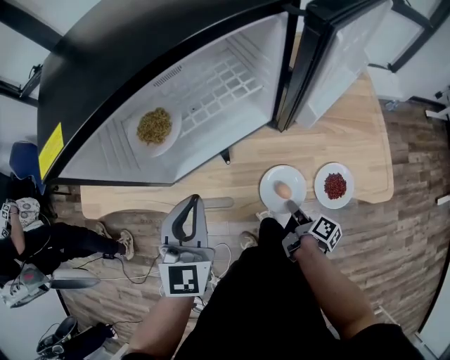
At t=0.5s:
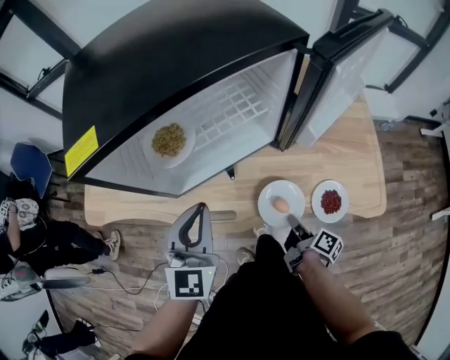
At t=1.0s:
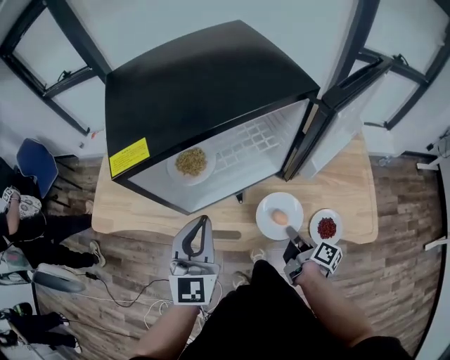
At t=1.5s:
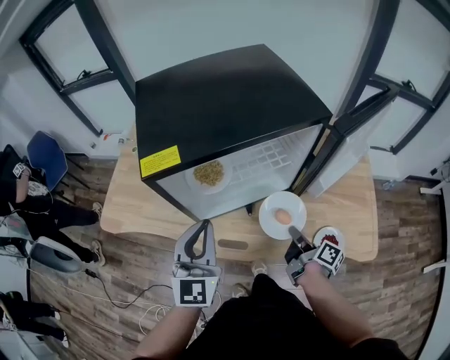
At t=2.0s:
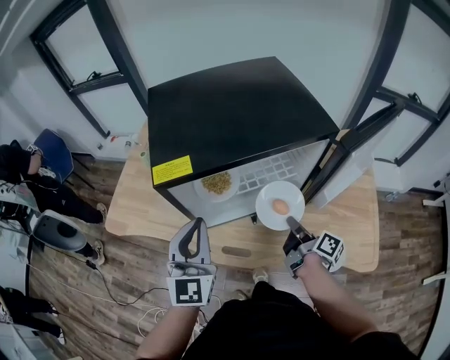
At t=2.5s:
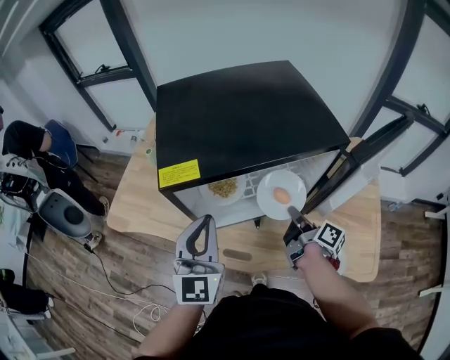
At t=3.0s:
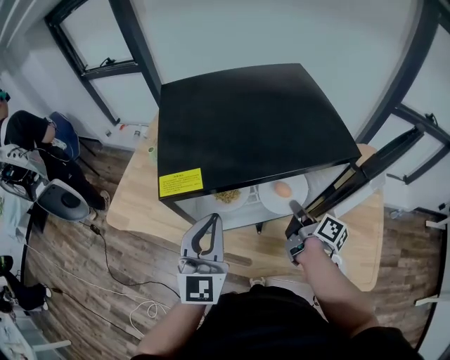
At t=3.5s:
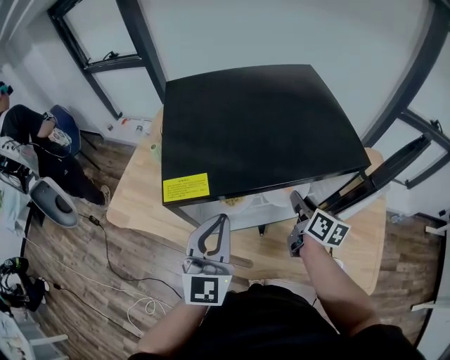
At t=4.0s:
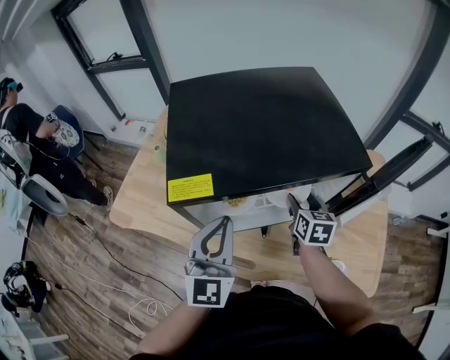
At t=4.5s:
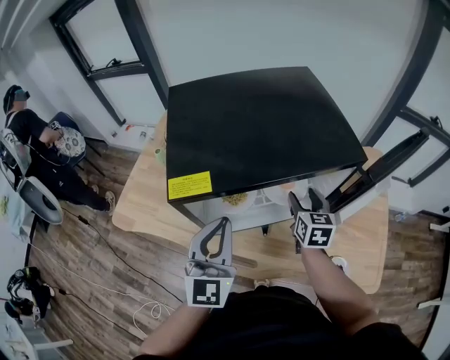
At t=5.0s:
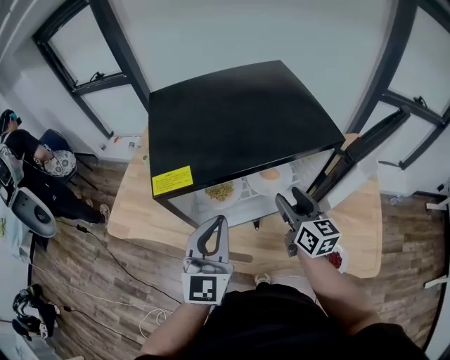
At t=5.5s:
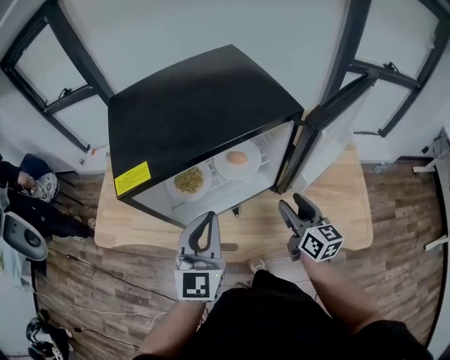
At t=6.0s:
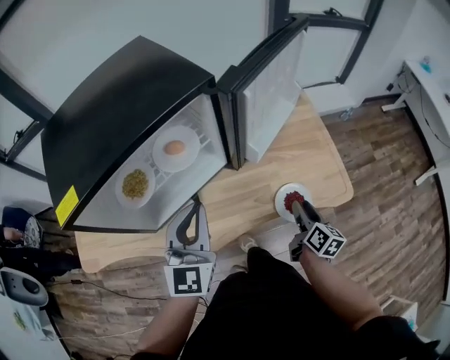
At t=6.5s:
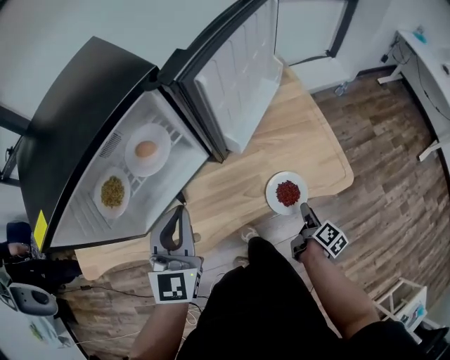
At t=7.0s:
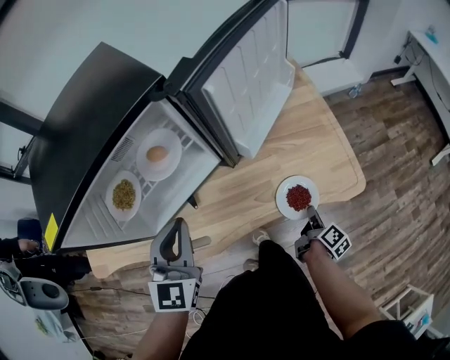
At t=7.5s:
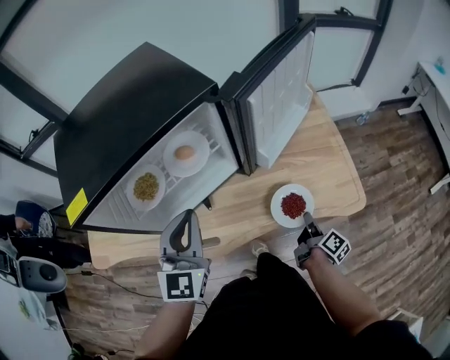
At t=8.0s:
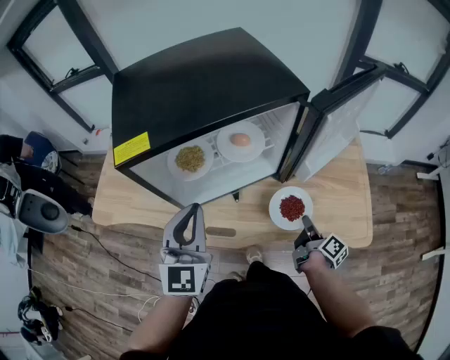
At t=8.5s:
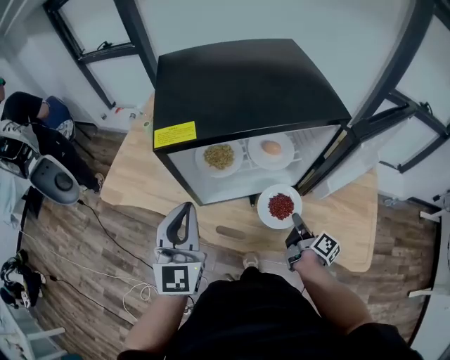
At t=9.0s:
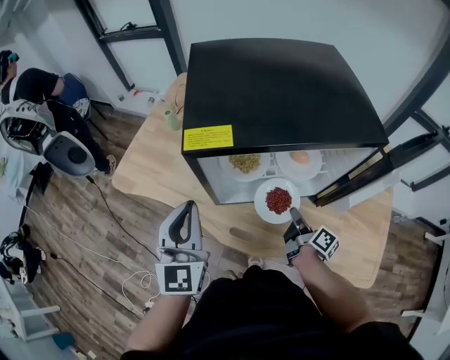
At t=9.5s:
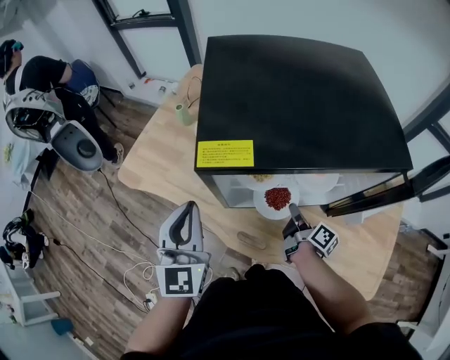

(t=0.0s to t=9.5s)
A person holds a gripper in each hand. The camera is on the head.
t=0.0s - t=2.0s: The right gripper shifts roughly 25 cm upward and forward, and swivels about 30 degrees. Meanwhile the left gripper moves upward and to the left, some 15 cm, and changes its angle by about 20 degrees.
t=2.0s - t=4.0s: The right gripper heads forward, covering approximately 15 cm, rotates around the line of its fingers by some 60 degrees, counterclockwise from behind, and opens, while the left gripper ends up some 5 cm from where it was.
t=4.0s - t=5.5s: The left gripper is displaced to the right by approximately 5 cm; the right gripper goes approximately 15 cm backward and to the right, and swivels roughly 20 degrees.
t=5.5s - t=7.5s: The right gripper ends up about 30 cm from where it was, rolls clockwise, seen from behind, by about 50 degrees, and closes.
t=7.5s - t=9.5s: The left gripper changes place by roughly 25 cm, and rotates some 40 degrees. The right gripper moves about 35 cm, and swivels some 40 degrees.

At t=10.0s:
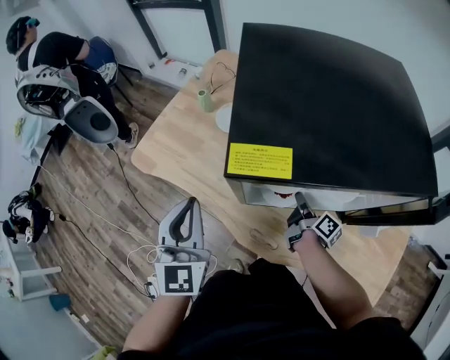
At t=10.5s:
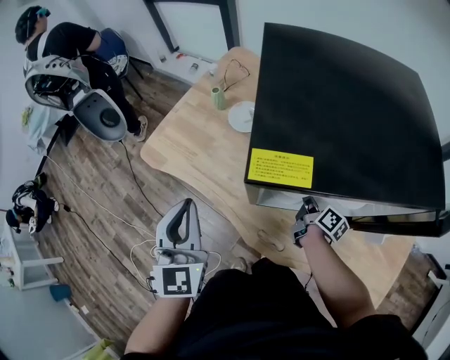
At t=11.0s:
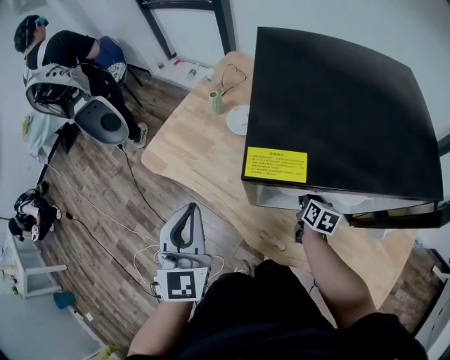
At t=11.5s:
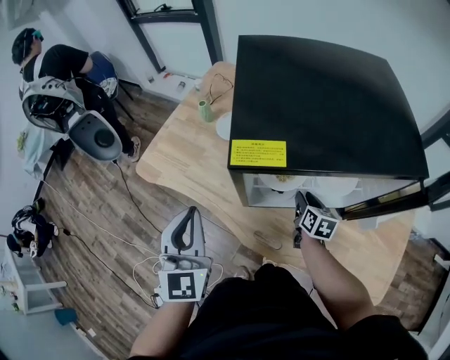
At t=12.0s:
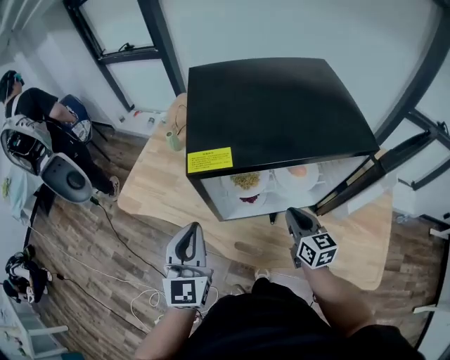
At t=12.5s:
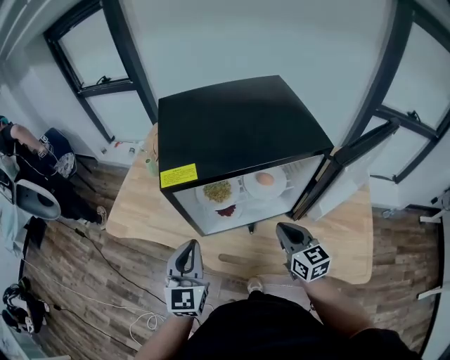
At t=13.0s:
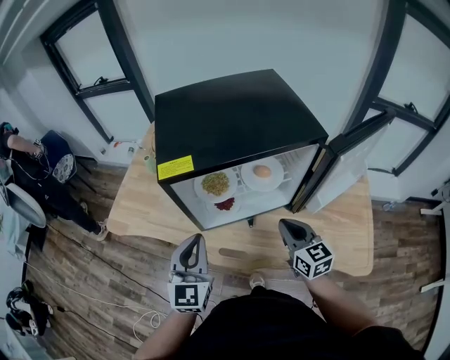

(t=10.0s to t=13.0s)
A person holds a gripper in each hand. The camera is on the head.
t=10.0s - t=11.5s: The right gripper twists some 40 degrees counterclockwise, seen from behind, and opens.
t=11.5s - t=13.0s: The right gripper is displaced upward and backward by approximately 25 cm, turns by about 30 degrees, and closes up, while the left gripper travels to the right by approximately 15 cm, and turns by roughly 20 degrees.

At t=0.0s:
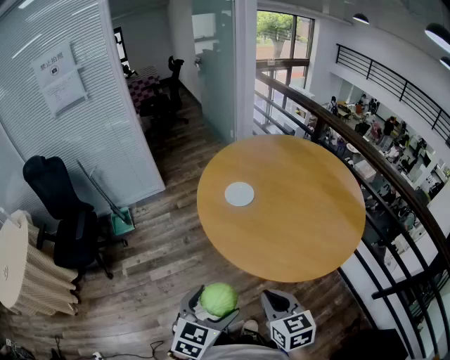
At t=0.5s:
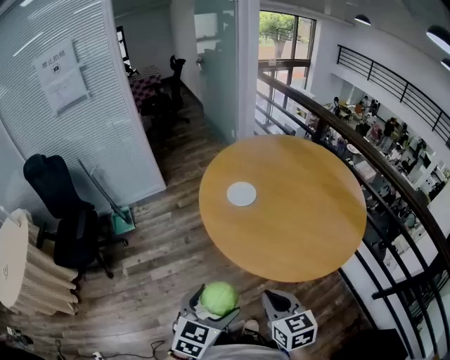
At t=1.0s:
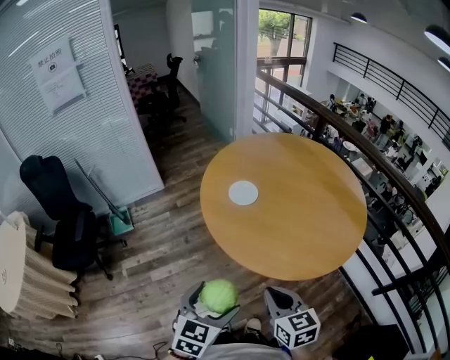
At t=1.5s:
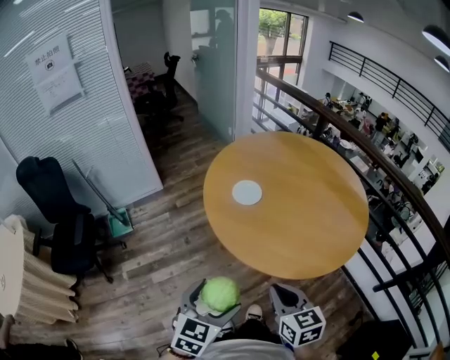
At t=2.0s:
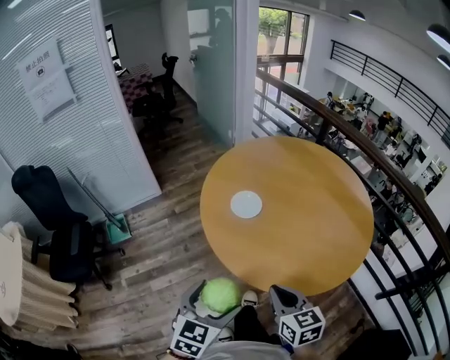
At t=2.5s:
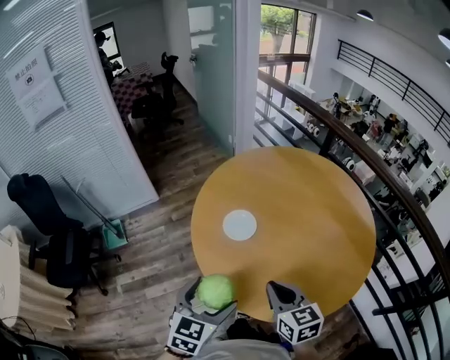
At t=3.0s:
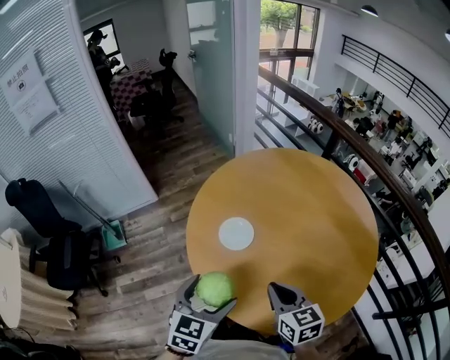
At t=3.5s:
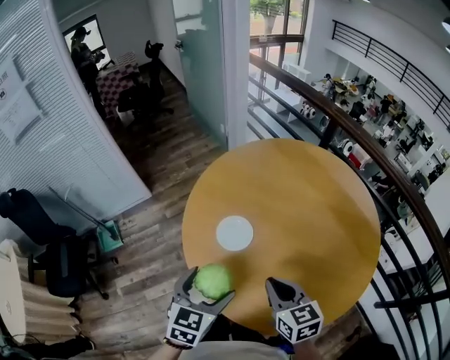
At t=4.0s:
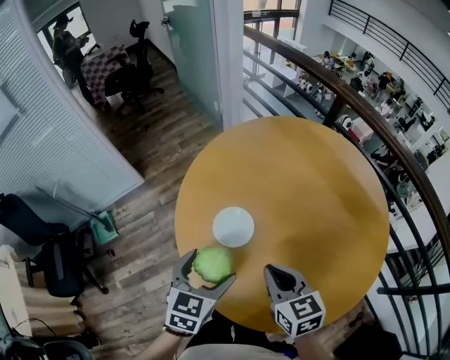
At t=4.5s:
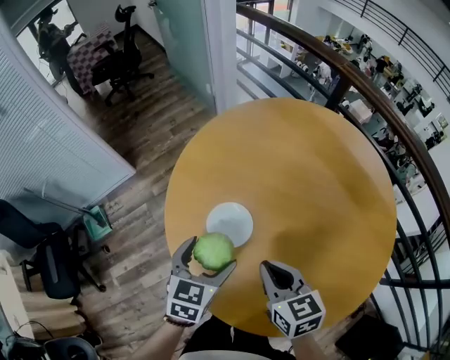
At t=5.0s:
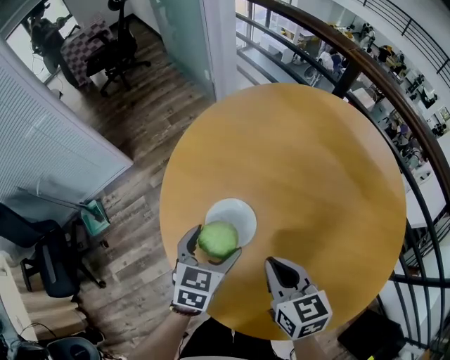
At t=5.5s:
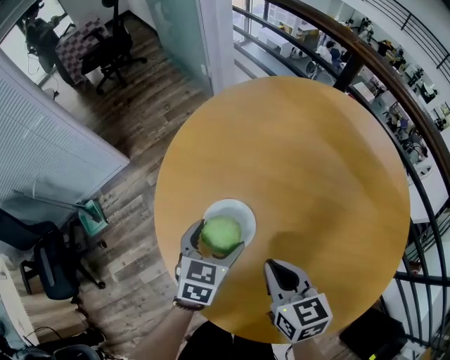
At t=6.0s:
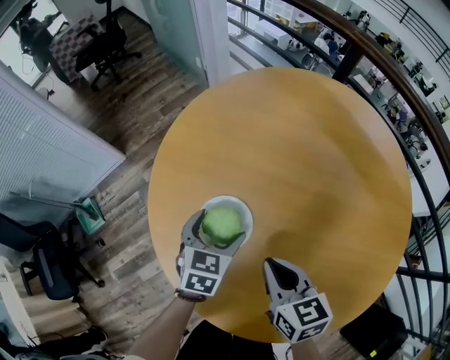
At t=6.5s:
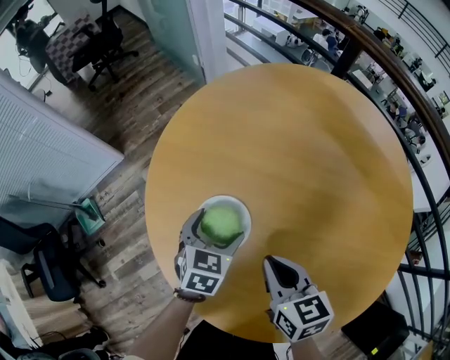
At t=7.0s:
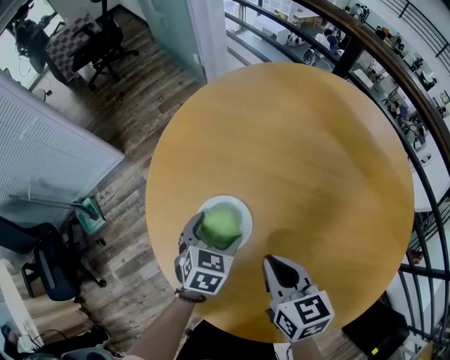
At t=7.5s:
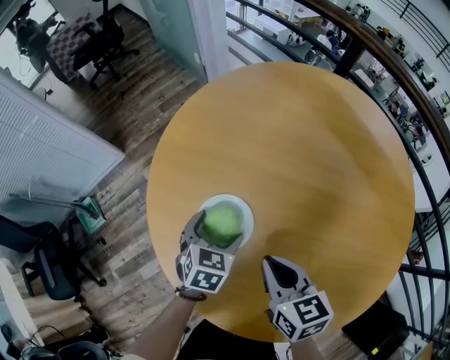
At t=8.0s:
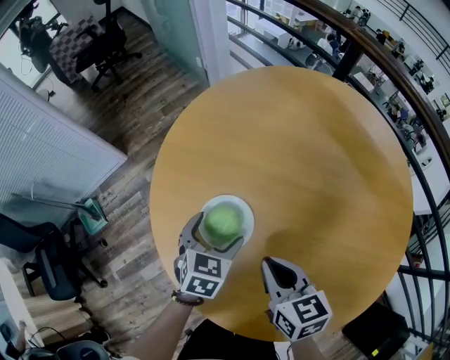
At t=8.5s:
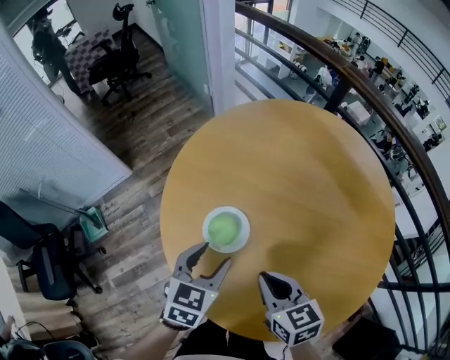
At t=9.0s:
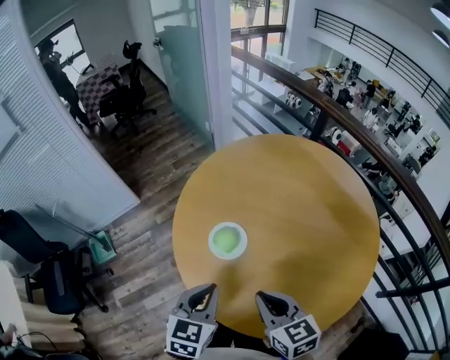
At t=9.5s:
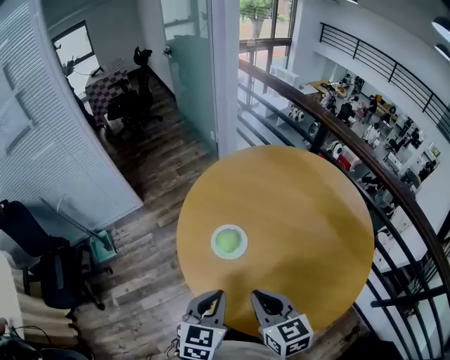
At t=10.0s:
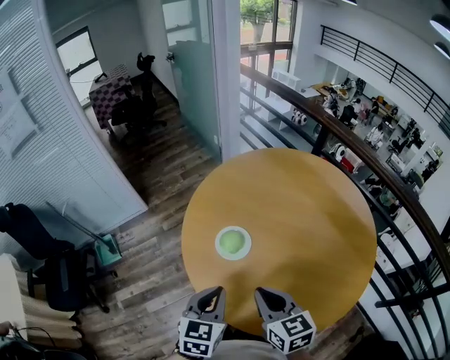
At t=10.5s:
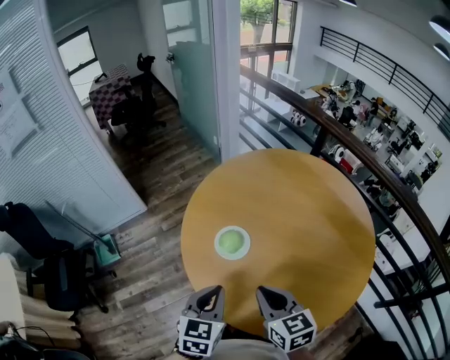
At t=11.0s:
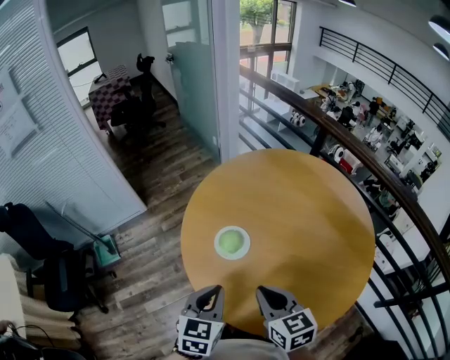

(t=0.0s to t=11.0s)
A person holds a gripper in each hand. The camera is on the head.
t=0.0s - t=2.0s: The right gripper is displaced forward by approximately 10 cm. The left gripper shifts approximately 10 cm forward and to the left.
t=2.0s - t=3.5s: Both grippers travel together forward, some 25 cm.
t=3.5s - t=5.5s: The right gripper travels downward and forward by approximately 20 cm. Meanwhile the left gripper shifts approximately 30 cm downward and forward.
t=5.5s - t=7.5s: The left gripper travels downward by roughly 5 cm.
t=7.5s - t=9.0s: The left gripper shifts some 30 cm upward and backward, and closes its fingers. Meanwhile the right gripper heads upward and backward, covering some 20 cm.
t=9.0s - t=11.0s: There are only small adjustments of the grippers.

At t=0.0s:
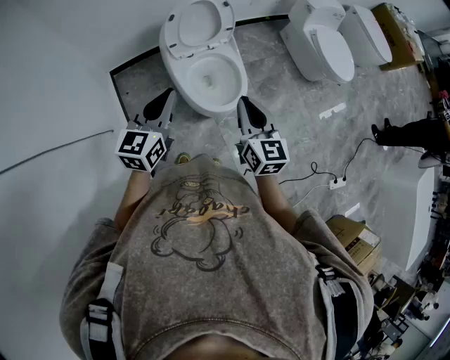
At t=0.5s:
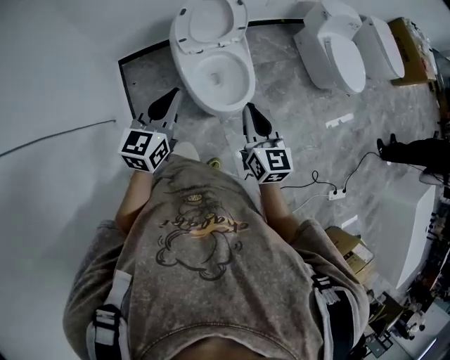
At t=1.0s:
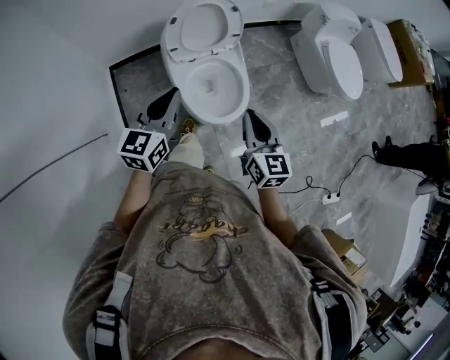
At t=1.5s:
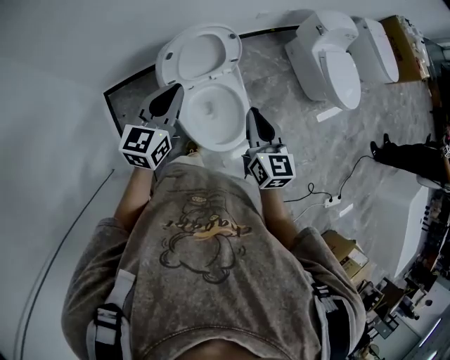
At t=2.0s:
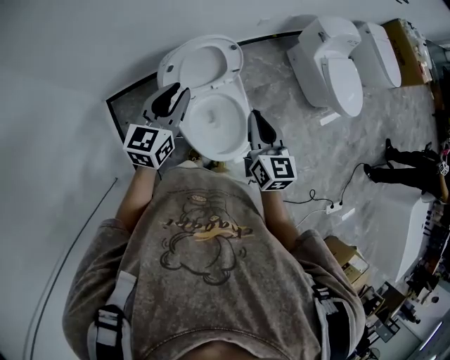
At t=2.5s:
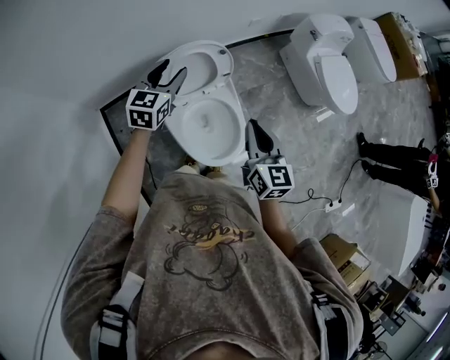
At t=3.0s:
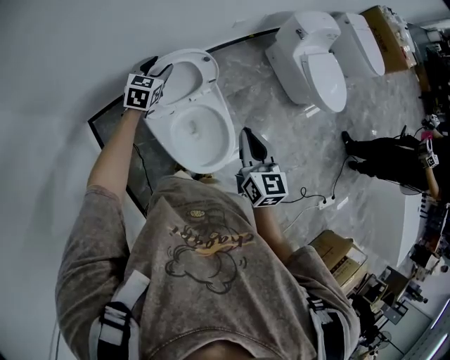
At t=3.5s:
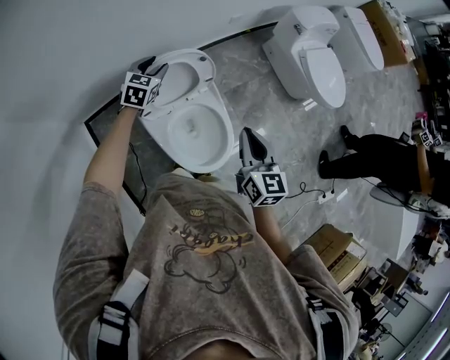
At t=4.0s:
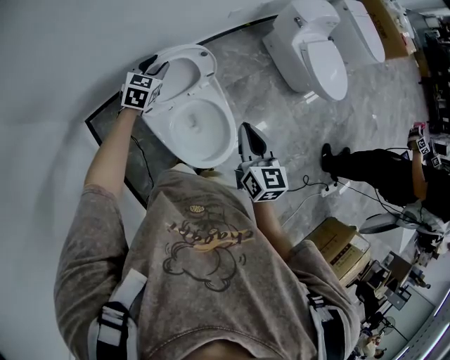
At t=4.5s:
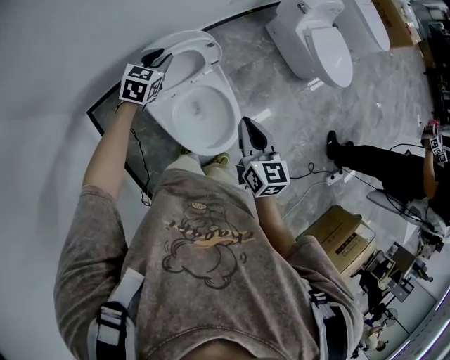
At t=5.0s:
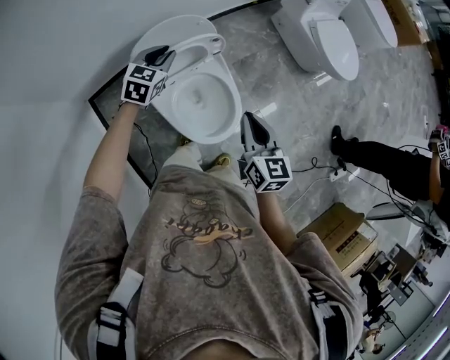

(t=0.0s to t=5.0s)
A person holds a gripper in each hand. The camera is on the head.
t=0.0s - t=2.5s: The left gripper travels forward by some 40 cm, and opens. The right gripper shifts roughly 25 cm forward.
t=2.5s - t=5.0s: The right gripper travels downward by about 5 cm. Meanwhile the left gripper heads downward, covering approximately 10 cm, rotates approximately 20 degrees, and closes.
